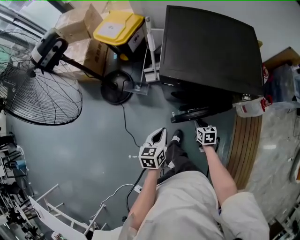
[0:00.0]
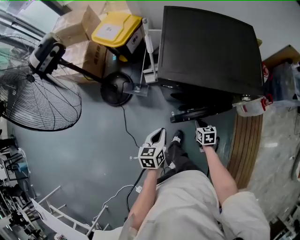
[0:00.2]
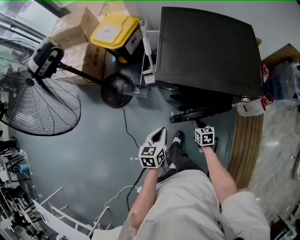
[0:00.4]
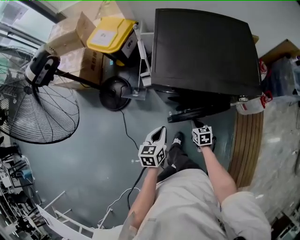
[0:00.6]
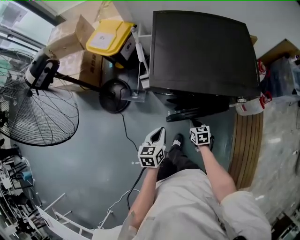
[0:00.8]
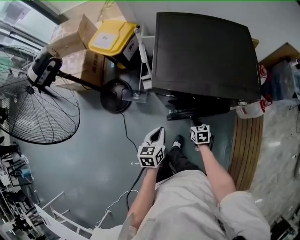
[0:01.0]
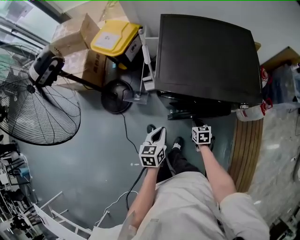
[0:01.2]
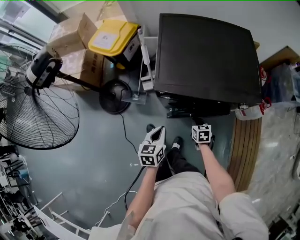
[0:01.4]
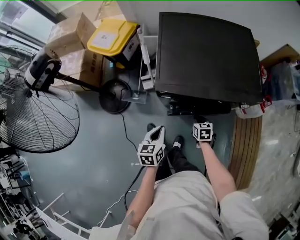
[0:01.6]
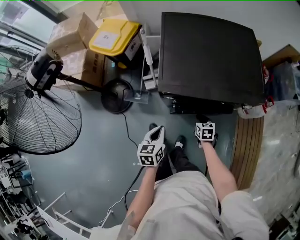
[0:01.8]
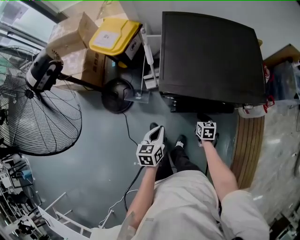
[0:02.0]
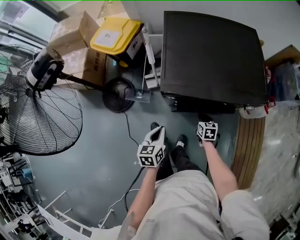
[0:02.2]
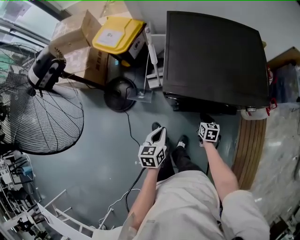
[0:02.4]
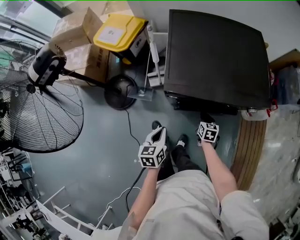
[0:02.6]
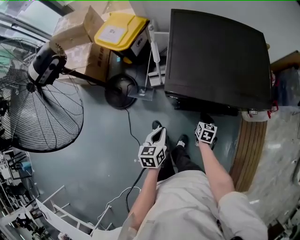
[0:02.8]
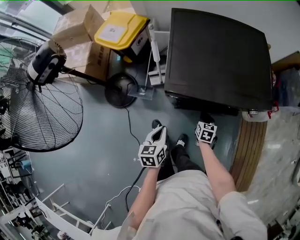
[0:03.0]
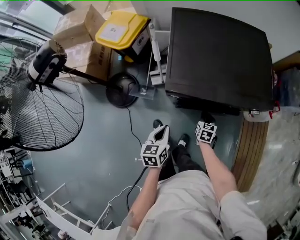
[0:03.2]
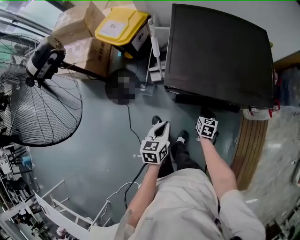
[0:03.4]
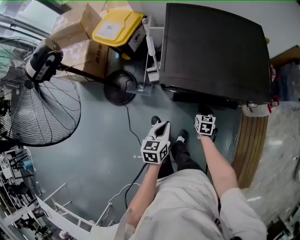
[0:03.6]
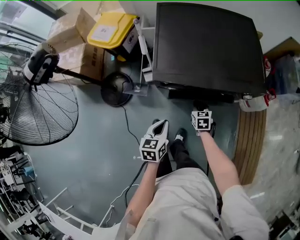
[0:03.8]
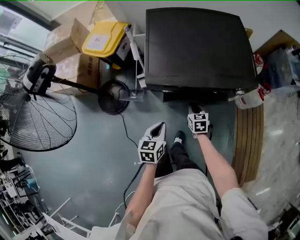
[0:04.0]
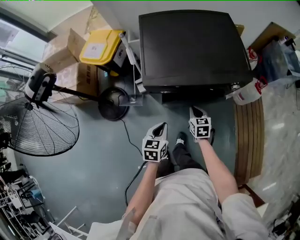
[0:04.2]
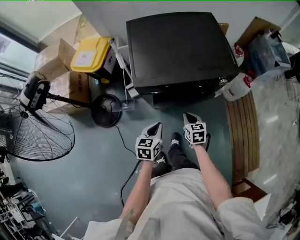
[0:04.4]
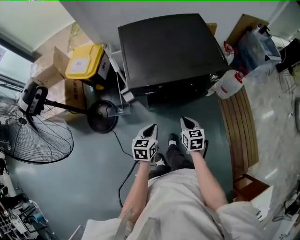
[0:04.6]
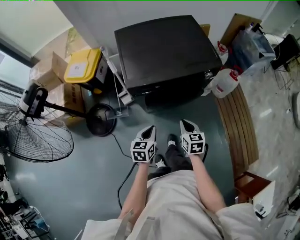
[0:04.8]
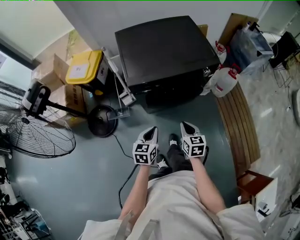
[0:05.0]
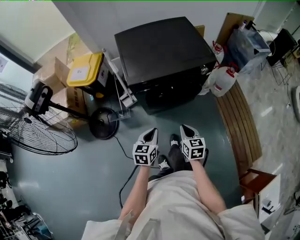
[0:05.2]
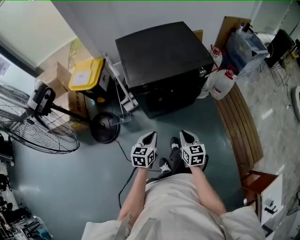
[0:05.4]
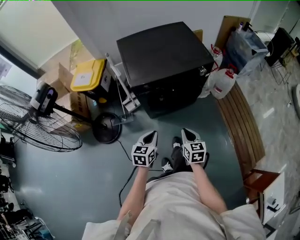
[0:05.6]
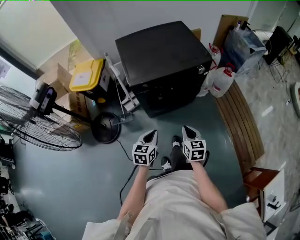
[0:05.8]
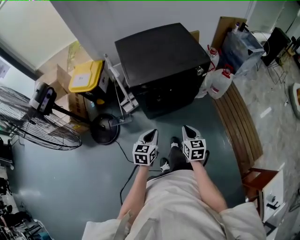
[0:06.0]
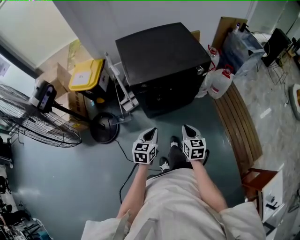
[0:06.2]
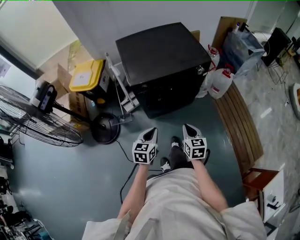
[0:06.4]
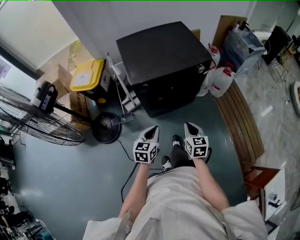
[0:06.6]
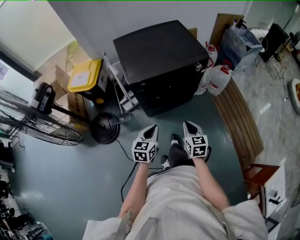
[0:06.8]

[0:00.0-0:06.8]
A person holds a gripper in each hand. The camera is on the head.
0.0 to 1.4 s: The two grippers go roughly 10 cm forward.
1.4 to 2.8 s: The grippers stay close to where they were, moving slightly.
2.8 to 4.0 s: The left gripper goes roughly 5 cm to the right.
4.0 to 5.4 s: The right gripper is displaced backward and upward by approximately 30 cm, and rotates about 20 degrees. Meanwhile the left gripper moves backward and upward, roughly 15 cm, and rotates about 20 degrees.
5.4 to 6.8 s: There are only small adjustments of the grippers.

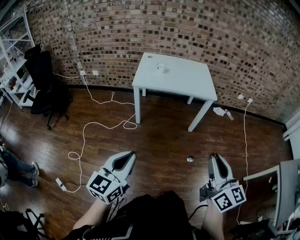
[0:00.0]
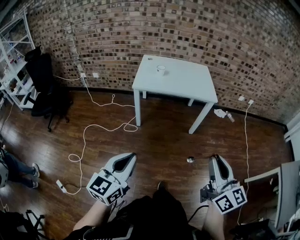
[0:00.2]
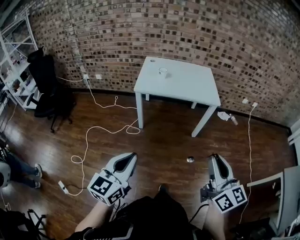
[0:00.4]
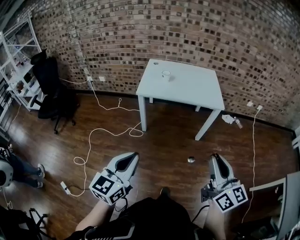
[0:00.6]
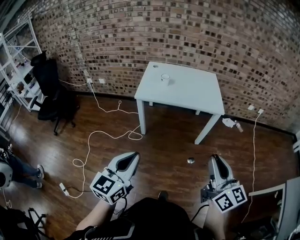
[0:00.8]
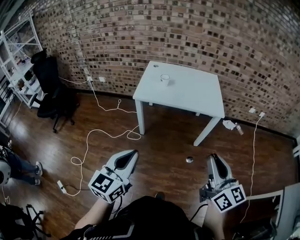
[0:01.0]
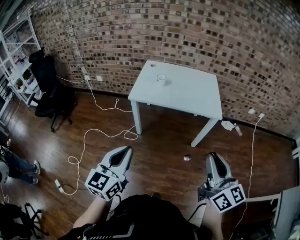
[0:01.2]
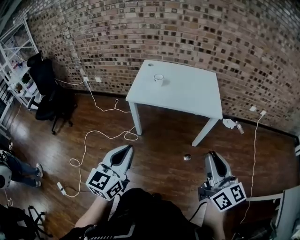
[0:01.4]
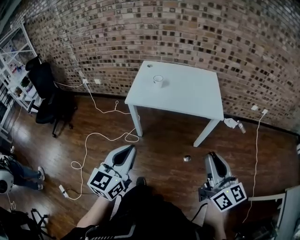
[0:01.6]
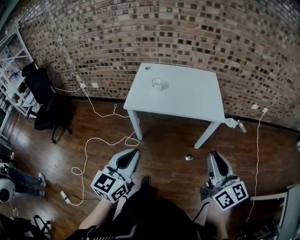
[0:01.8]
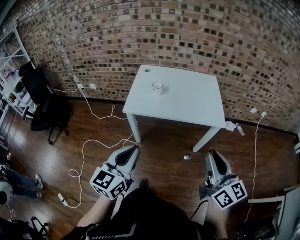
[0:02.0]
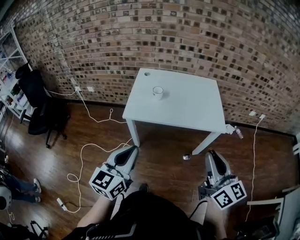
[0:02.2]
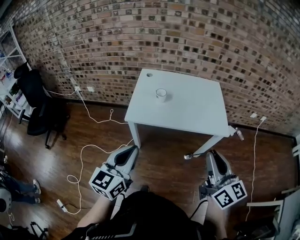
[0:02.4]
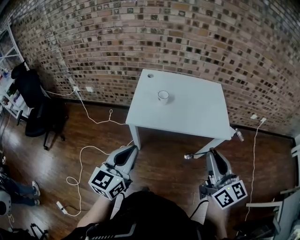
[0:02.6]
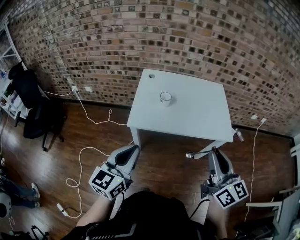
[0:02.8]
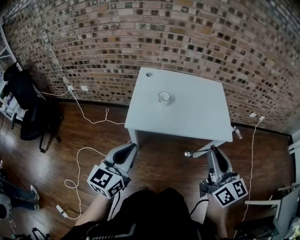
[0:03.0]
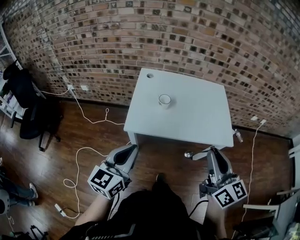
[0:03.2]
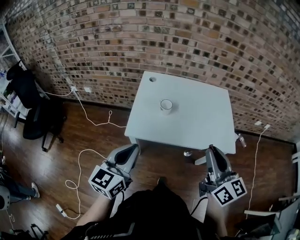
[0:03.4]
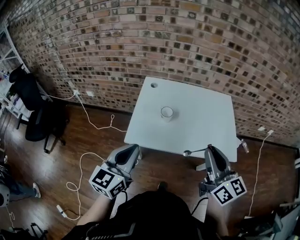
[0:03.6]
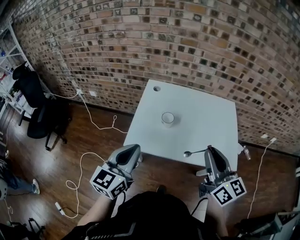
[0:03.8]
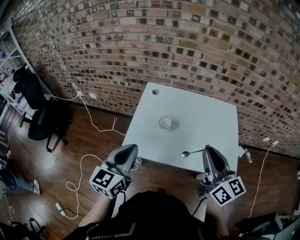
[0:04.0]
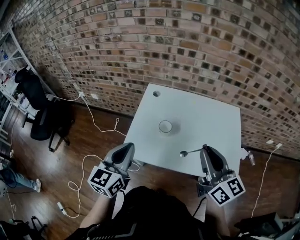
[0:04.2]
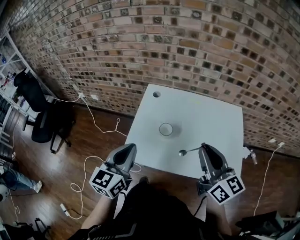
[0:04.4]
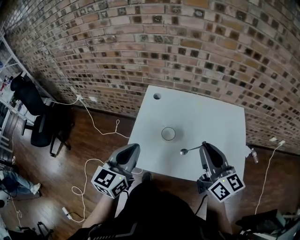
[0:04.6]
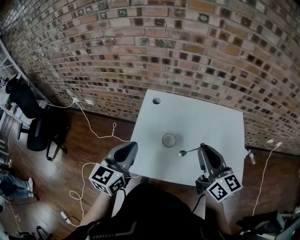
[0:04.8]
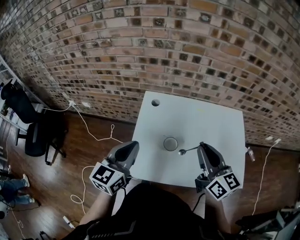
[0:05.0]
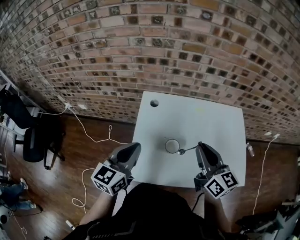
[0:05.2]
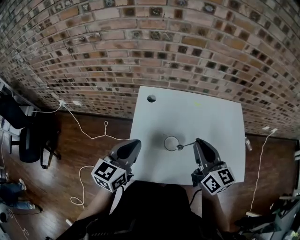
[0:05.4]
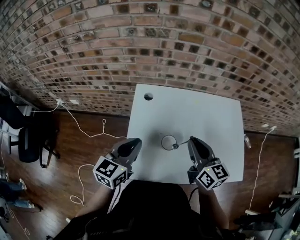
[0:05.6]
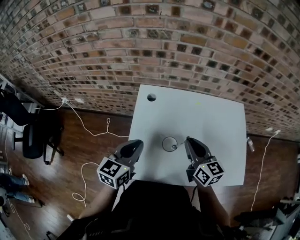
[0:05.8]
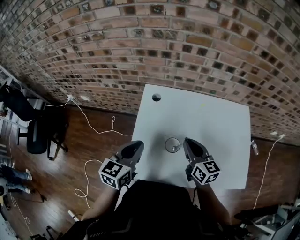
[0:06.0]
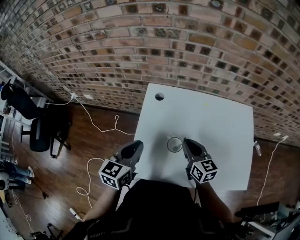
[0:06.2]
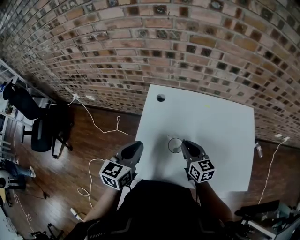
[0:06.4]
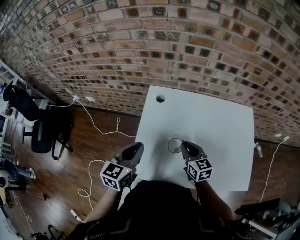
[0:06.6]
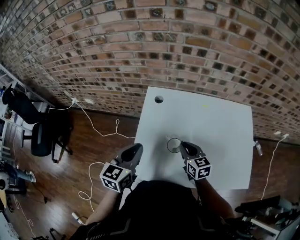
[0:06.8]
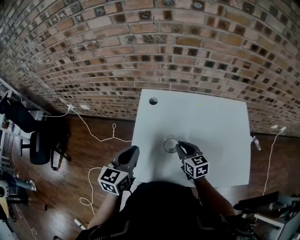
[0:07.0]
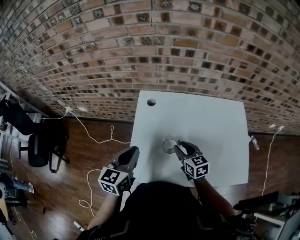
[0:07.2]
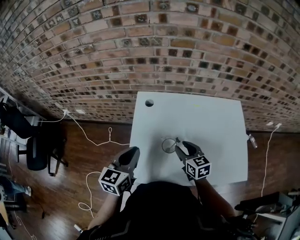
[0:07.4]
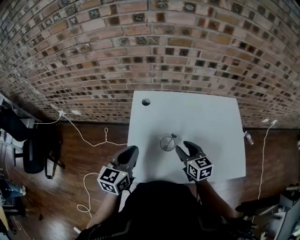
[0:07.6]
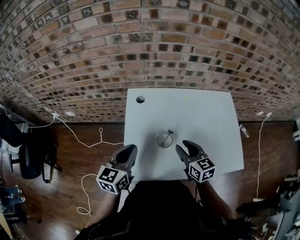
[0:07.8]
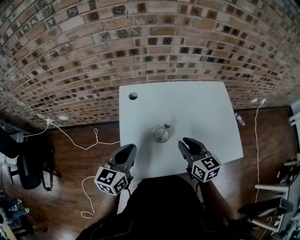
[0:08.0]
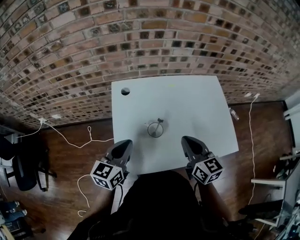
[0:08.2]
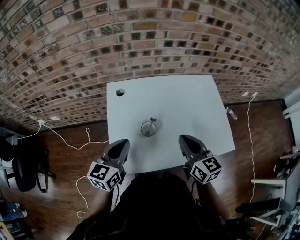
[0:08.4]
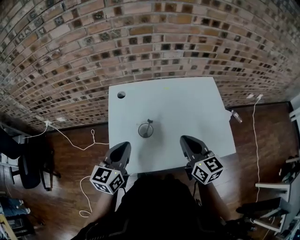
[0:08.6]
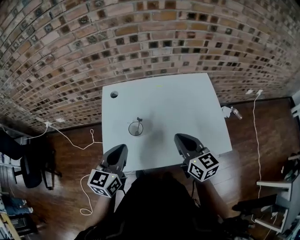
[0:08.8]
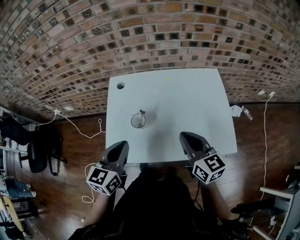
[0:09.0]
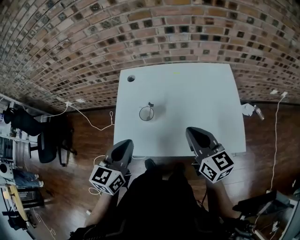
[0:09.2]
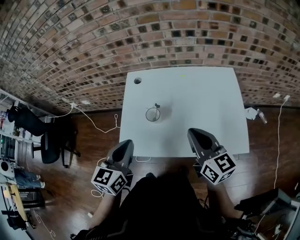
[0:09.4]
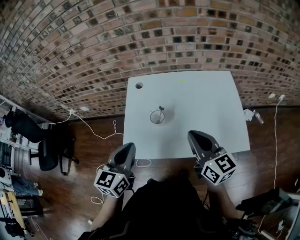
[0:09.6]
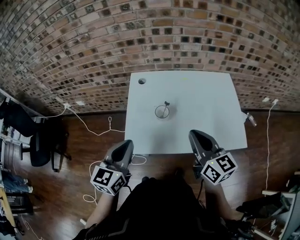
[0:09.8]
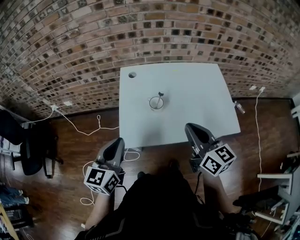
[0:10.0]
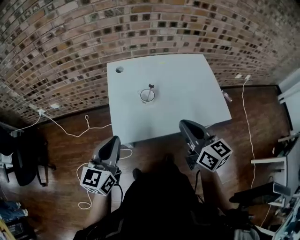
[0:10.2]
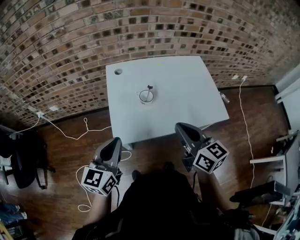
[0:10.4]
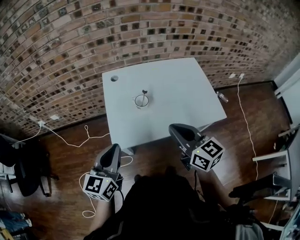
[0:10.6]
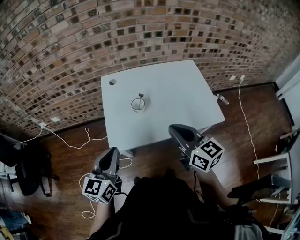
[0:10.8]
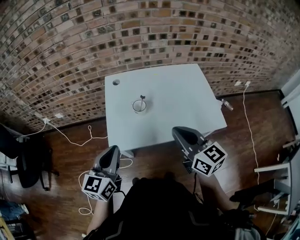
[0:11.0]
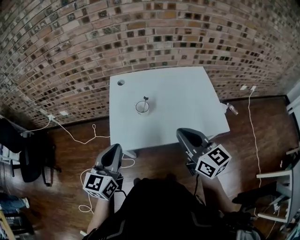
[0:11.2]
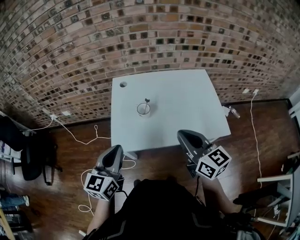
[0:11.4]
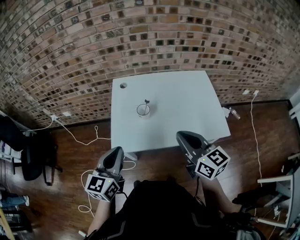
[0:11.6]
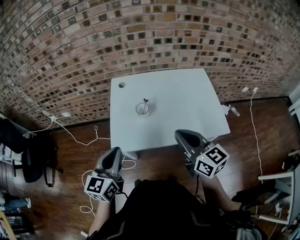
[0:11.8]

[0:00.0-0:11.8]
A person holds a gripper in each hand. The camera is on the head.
0.0 to 1.4 s: The left gripper shifts approximately 25 cm forward and to the right, while the right gripper shifts approximately 20 cm forward.
1.4 to 3.0 s: The grippers both shift forward and to the left by about 30 cm.
3.0 to 4.4 s: Both grippers move forward, about 25 cm.
4.4 to 6.0 s: The left gripper shifts about 20 cm forward and downward; the right gripper heads downward, forward and to the left, covering roughly 25 cm.
6.0 to 7.4 s: The right gripper goes some 5 cm downward, and opens.
7.4 to 8.8 s: The left gripper goes some 10 cm to the right and backward. The right gripper travels to the right, upward and backward by approximately 20 cm, and closes up.
8.8 to 10.4 s: The right gripper heads backward and to the left, covering roughly 20 cm; the left gripper goes some 15 cm to the left and backward.
10.4 to 11.8 s: The grippers both shift to the right by approximately 5 cm.

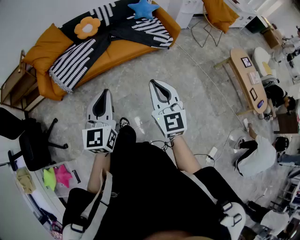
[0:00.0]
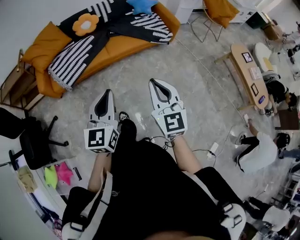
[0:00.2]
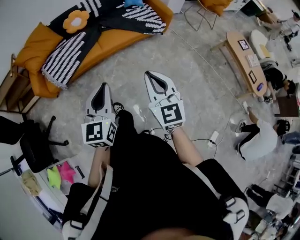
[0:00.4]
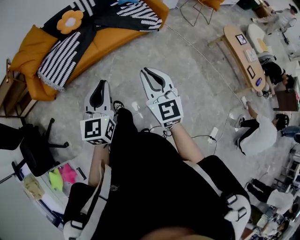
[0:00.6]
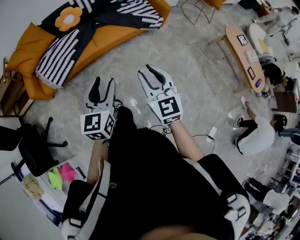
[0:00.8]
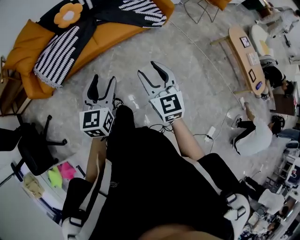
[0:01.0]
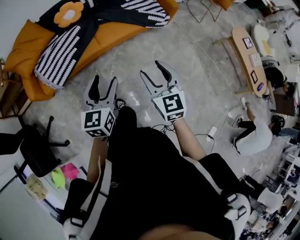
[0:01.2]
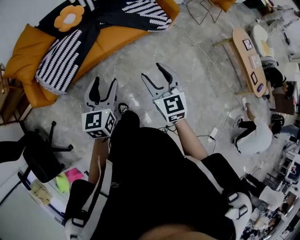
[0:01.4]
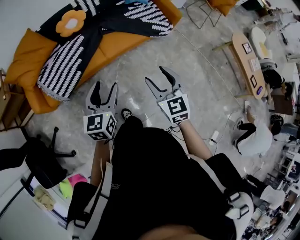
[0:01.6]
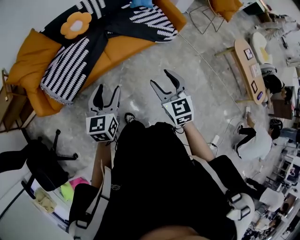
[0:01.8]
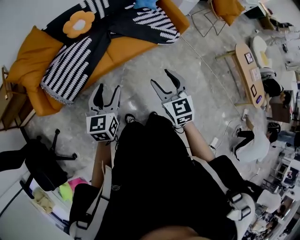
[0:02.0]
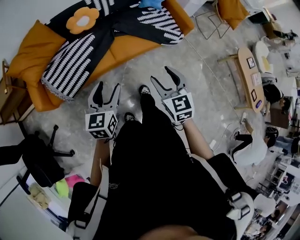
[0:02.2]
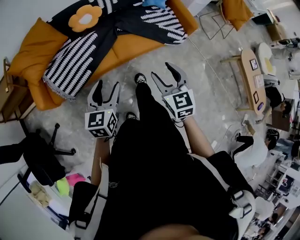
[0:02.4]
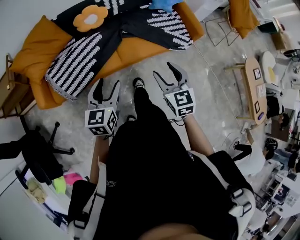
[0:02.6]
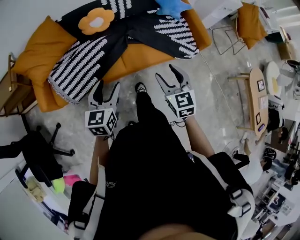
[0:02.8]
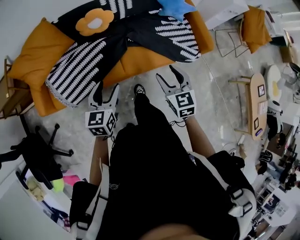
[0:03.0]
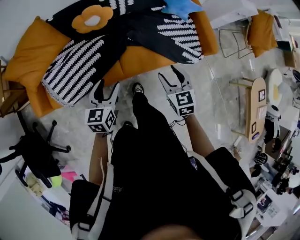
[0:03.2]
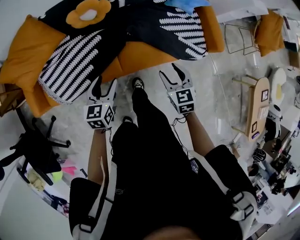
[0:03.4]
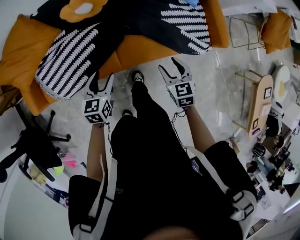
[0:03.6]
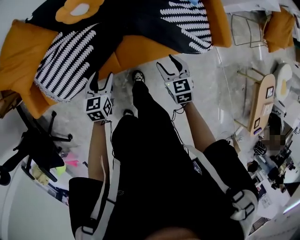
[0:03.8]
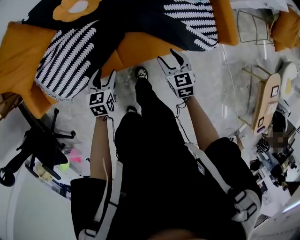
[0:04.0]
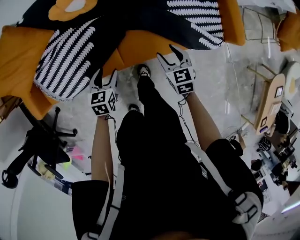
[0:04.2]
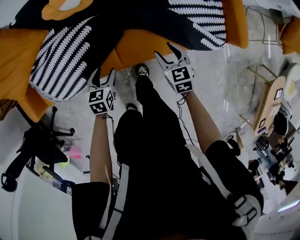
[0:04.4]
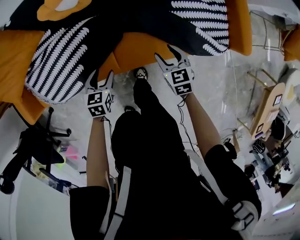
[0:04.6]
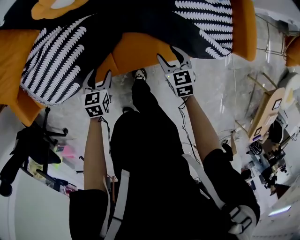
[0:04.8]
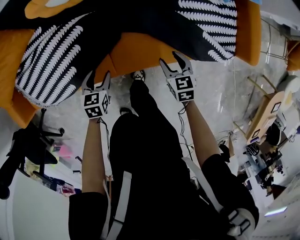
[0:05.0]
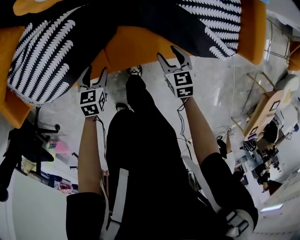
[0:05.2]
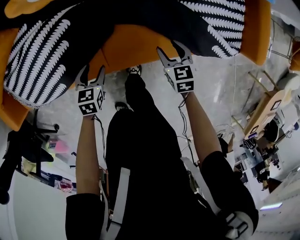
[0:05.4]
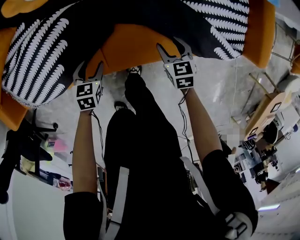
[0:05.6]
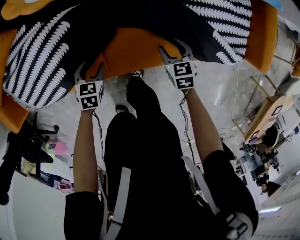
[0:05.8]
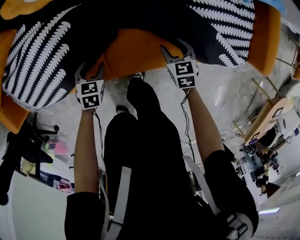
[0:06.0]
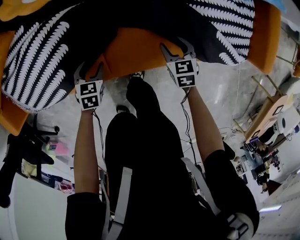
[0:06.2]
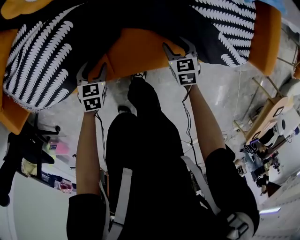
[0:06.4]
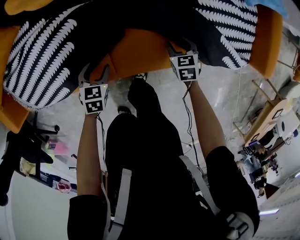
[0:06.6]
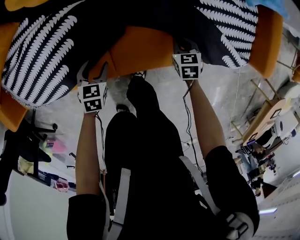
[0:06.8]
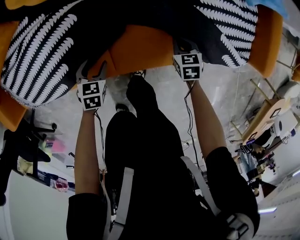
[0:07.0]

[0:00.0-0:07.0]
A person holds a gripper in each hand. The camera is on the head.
0.0 to 1.4 s: The two grippers go about 20 cm forward and downward. The left gripper opens. Meanwhile the right gripper opens.
1.4 to 2.8 s: The left gripper is displaced forward and to the left by approximately 25 cm; the right gripper shifts approximately 25 cm forward.
2.8 to 4.2 s: Both grippers move downward and forward, about 40 cm. The left gripper turns by about 30 degrees. Meanwhile the right gripper changes its angle by approximately 20 degrees.
4.2 to 5.6 s: Both grippers move downward, about 20 cm.
5.6 to 7.0 s: The right gripper shifts approximately 5 cm downward, and closes.
